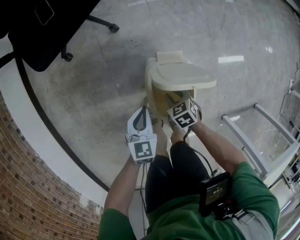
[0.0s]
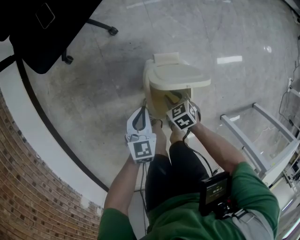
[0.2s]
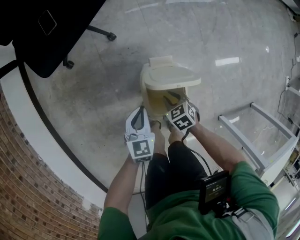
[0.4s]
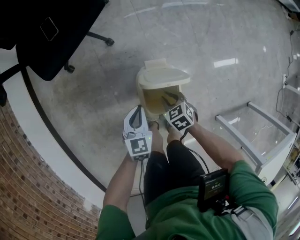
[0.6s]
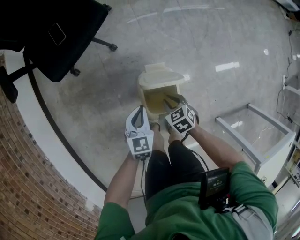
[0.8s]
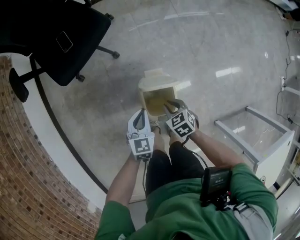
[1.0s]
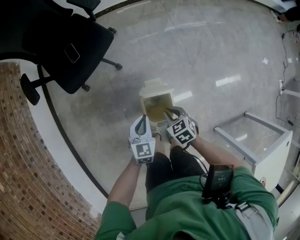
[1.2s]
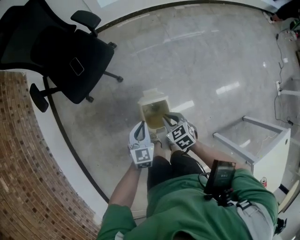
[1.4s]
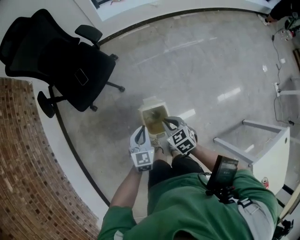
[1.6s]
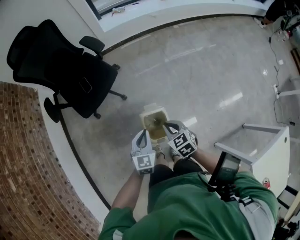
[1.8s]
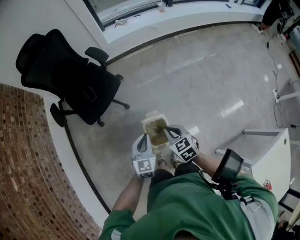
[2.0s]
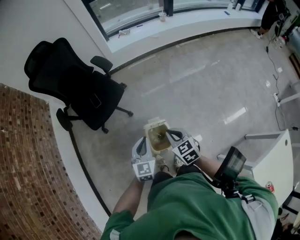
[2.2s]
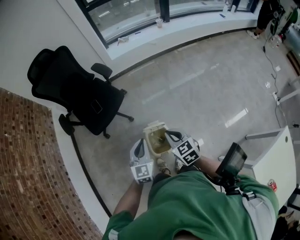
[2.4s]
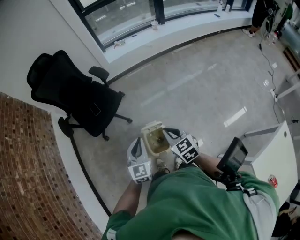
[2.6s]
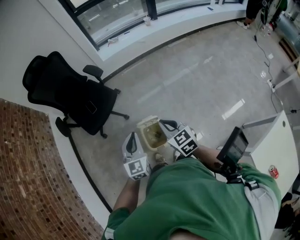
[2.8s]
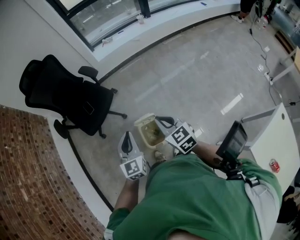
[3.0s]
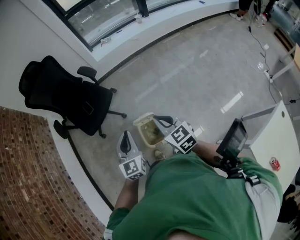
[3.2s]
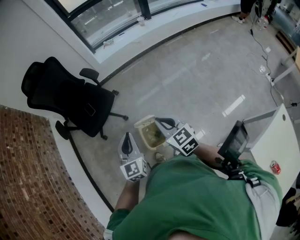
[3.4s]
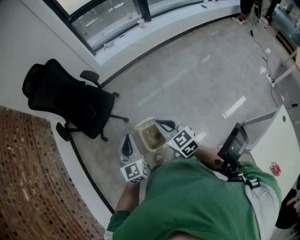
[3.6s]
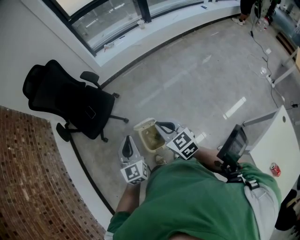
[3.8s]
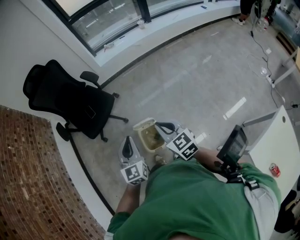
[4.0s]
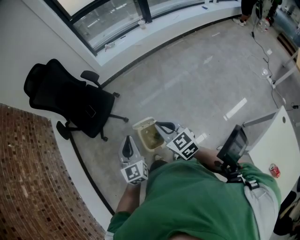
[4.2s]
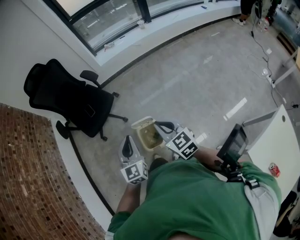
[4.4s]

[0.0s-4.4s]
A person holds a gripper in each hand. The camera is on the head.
0.0s to 1.4s: The grippers both shift upward by some 25 cm.
1.4s to 3.0s: The grippers both shift upward by roughly 25 cm. The left gripper swivels some 20 degrees; the right gripper turns by roughly 30 degrees.
3.0s to 4.4s: The right gripper ends up approximately 5 cm from where it was; the left gripper ends up roughly 5 cm from where it was.

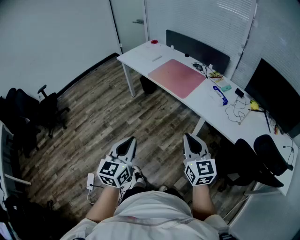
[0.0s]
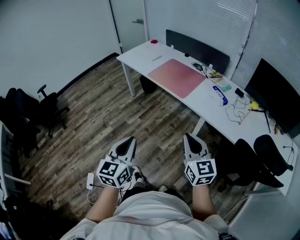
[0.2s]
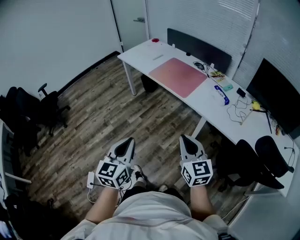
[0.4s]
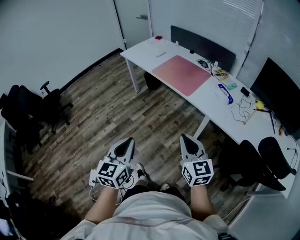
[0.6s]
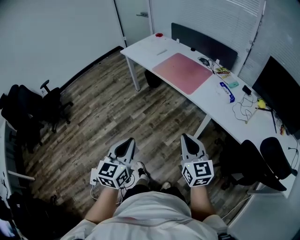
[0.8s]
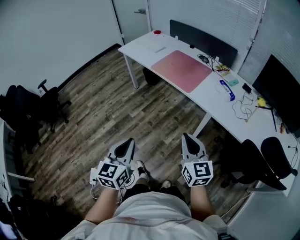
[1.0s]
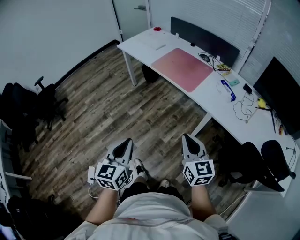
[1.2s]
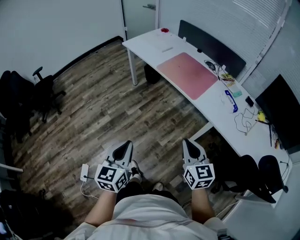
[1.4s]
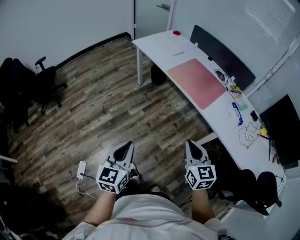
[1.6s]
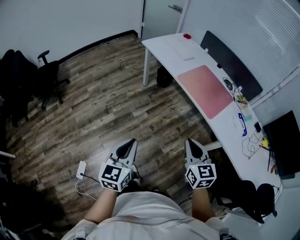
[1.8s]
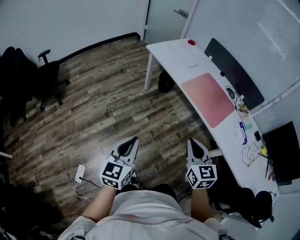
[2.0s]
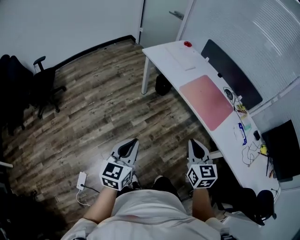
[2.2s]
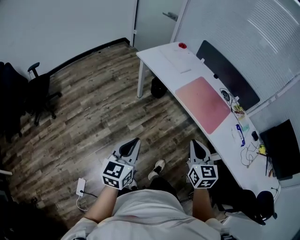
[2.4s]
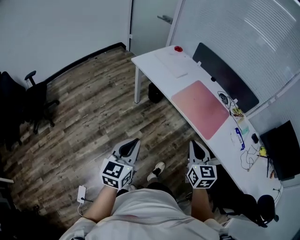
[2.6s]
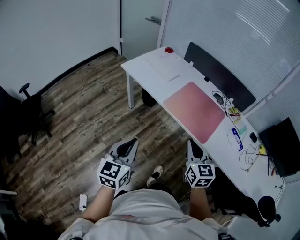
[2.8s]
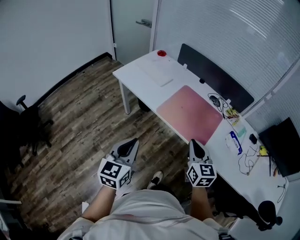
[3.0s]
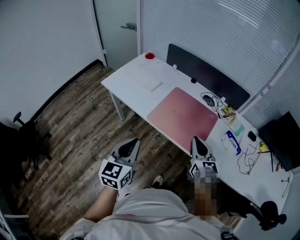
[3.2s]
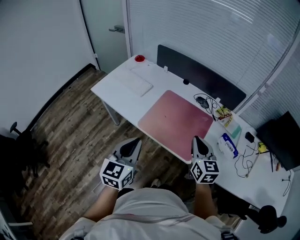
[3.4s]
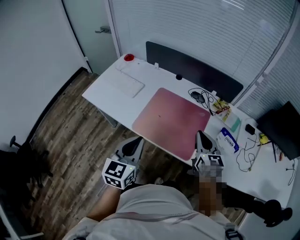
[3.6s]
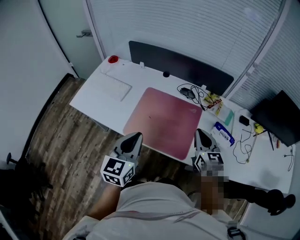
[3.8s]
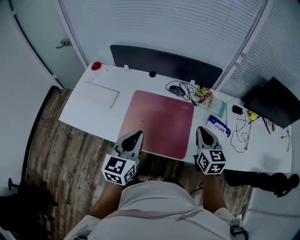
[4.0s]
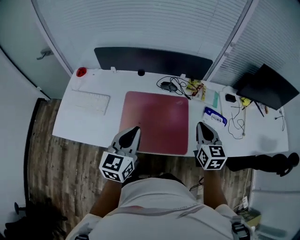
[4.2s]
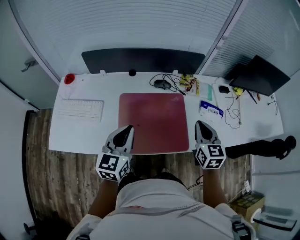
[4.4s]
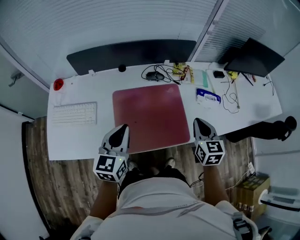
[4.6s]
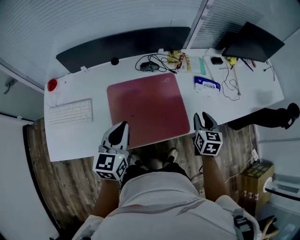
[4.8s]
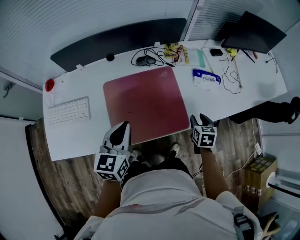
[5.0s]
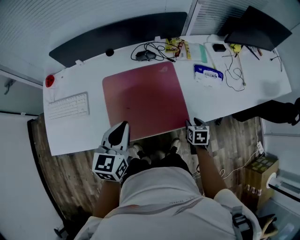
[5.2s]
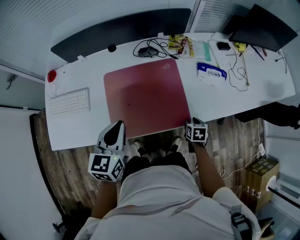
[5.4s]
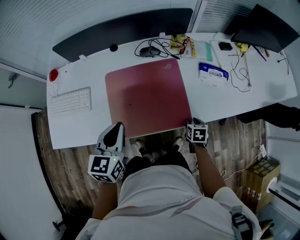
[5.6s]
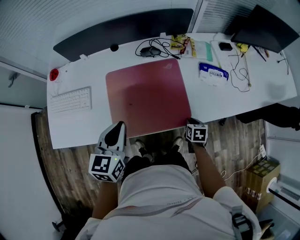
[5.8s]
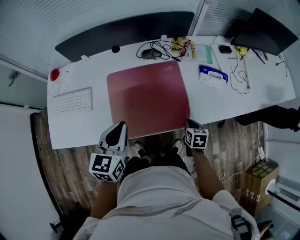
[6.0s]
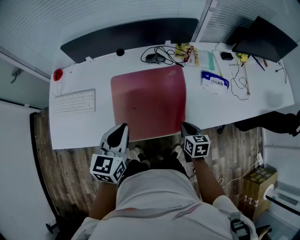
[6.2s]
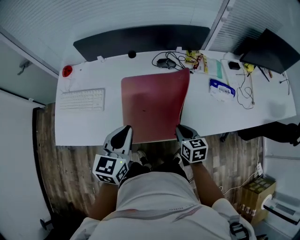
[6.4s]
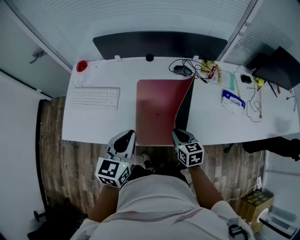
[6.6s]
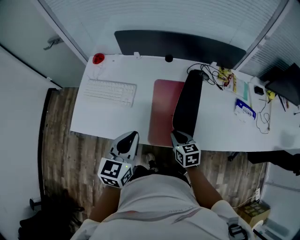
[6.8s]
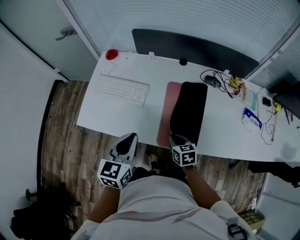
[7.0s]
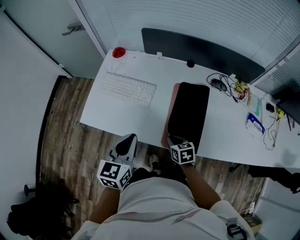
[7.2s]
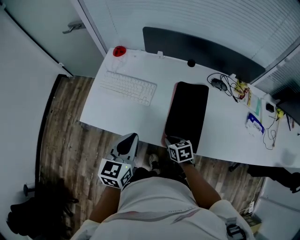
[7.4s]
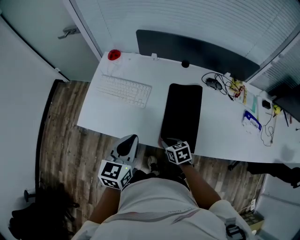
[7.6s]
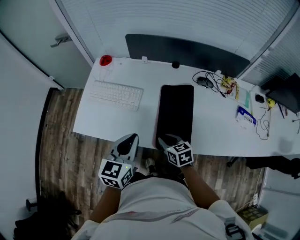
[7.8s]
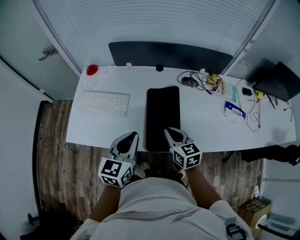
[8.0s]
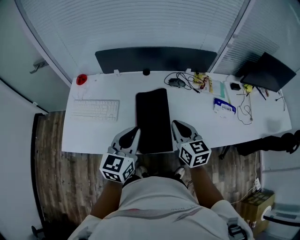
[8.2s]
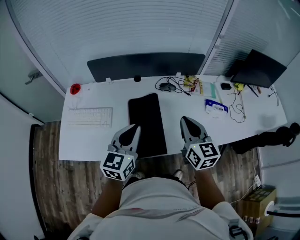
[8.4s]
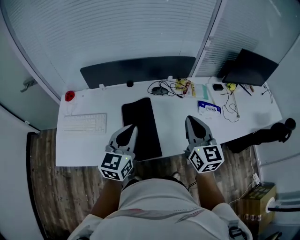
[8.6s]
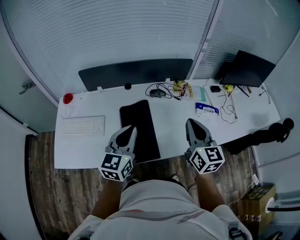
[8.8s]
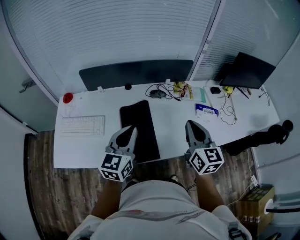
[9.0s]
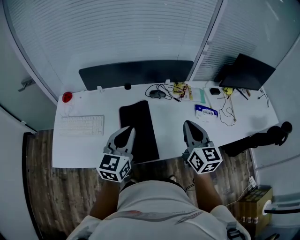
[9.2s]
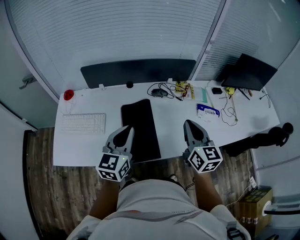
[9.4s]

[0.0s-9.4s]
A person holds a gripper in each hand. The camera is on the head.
0.0s to 1.6s: The right gripper moves forward, to the left and downward, roughly 15 cm, while the left gripper heads to the left, forward and downward, covering approximately 15 cm.
1.6s to 3.2s: The two grippers go roughly 40 cm forward. The right gripper rotates about 20 degrees.
3.2s to 4.8s: The right gripper moves about 20 cm, swivels roughly 60 degrees, and opens; the left gripper changes place by roughly 35 cm, and rotates roughly 40 degrees.
4.8s to 6.2s: The right gripper shifts approximately 15 cm downward, to the left and backward, and changes its angle by approximately 20 degrees.
6.2s to 7.8s: The left gripper moves approximately 20 cm. Meanwhile the right gripper moves some 5 cm downward and comes back, and rotates some 30 degrees.
7.8s to 9.4s: The left gripper moves about 15 cm, and changes its angle by some 20 degrees. Meanwhile the right gripper is displaced upward by some 25 cm, angles its fingers upward, by roughly 30 degrees, and closes.

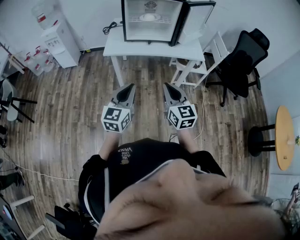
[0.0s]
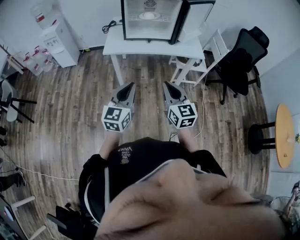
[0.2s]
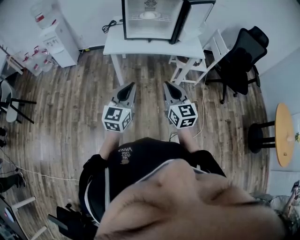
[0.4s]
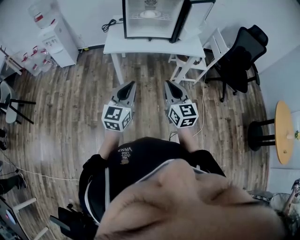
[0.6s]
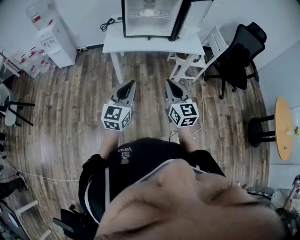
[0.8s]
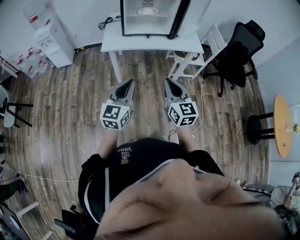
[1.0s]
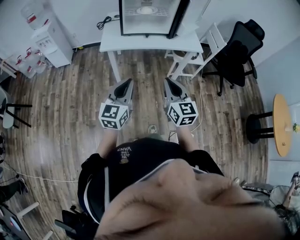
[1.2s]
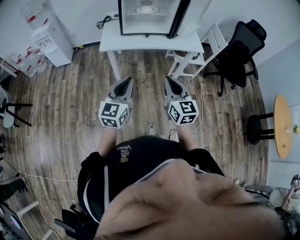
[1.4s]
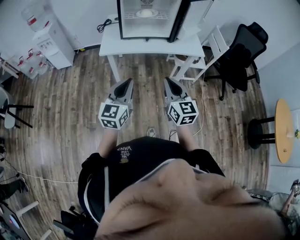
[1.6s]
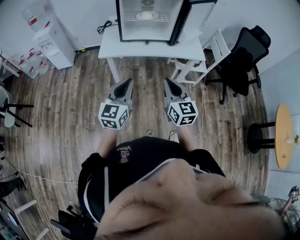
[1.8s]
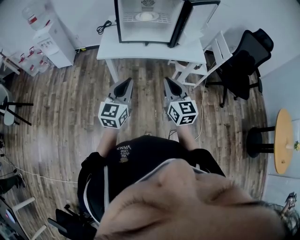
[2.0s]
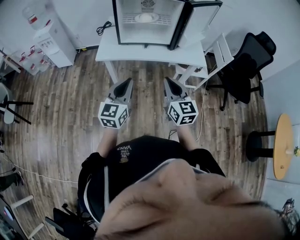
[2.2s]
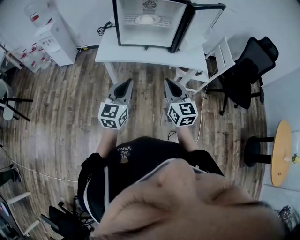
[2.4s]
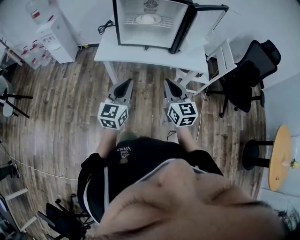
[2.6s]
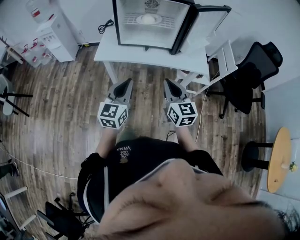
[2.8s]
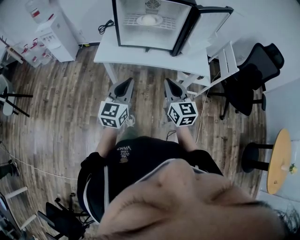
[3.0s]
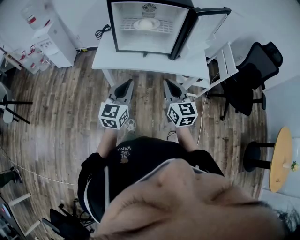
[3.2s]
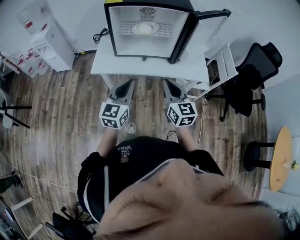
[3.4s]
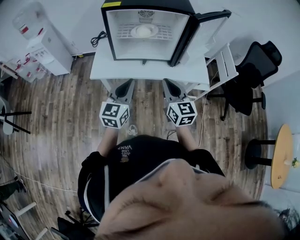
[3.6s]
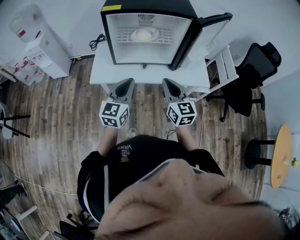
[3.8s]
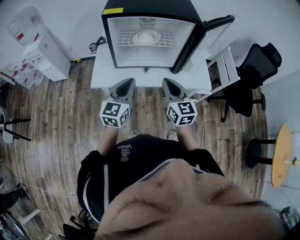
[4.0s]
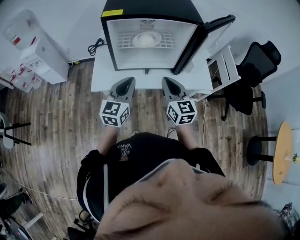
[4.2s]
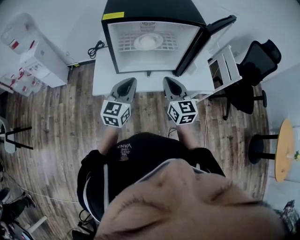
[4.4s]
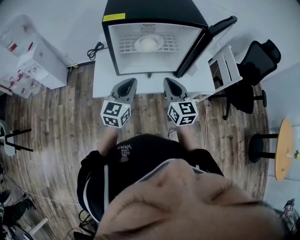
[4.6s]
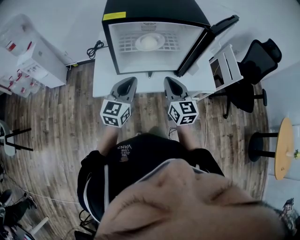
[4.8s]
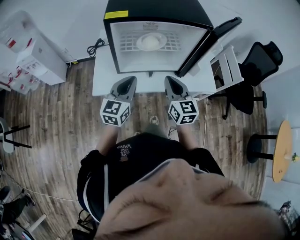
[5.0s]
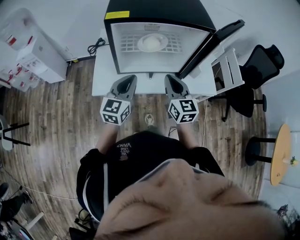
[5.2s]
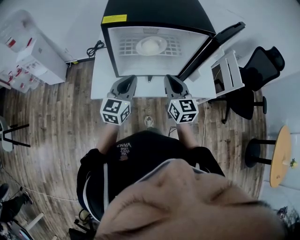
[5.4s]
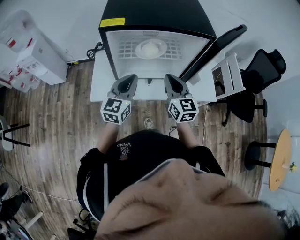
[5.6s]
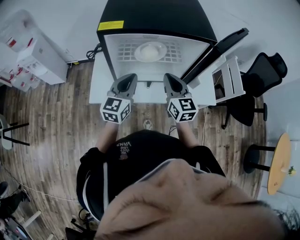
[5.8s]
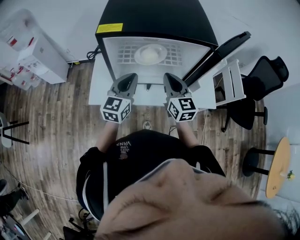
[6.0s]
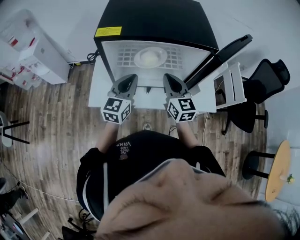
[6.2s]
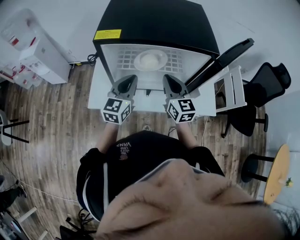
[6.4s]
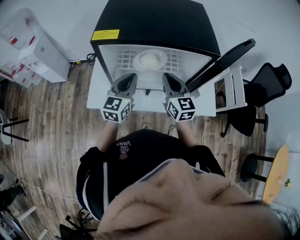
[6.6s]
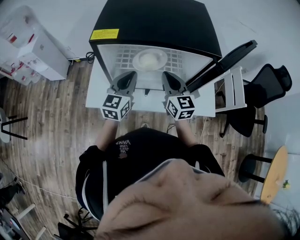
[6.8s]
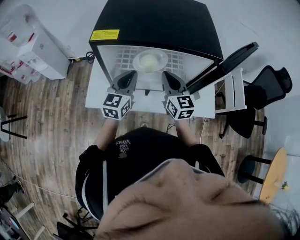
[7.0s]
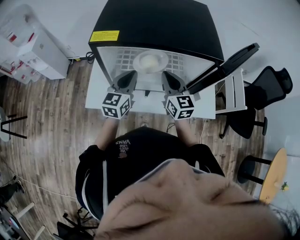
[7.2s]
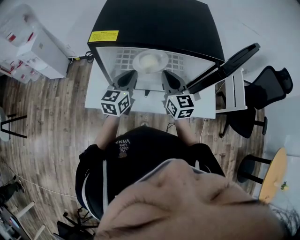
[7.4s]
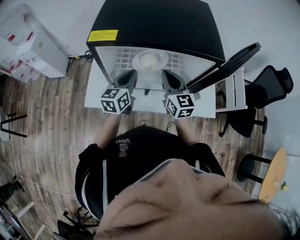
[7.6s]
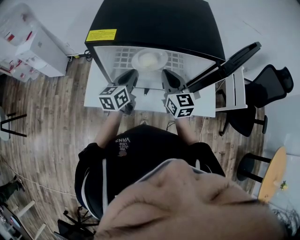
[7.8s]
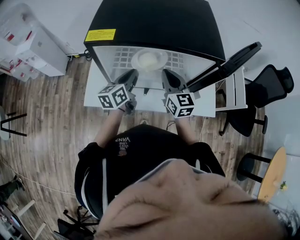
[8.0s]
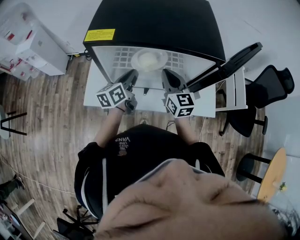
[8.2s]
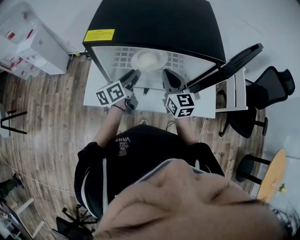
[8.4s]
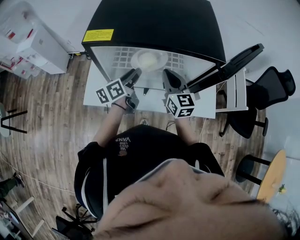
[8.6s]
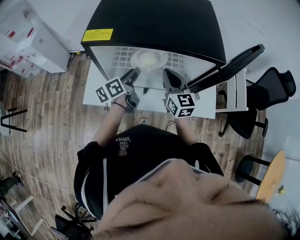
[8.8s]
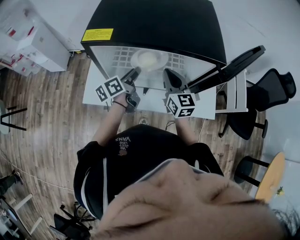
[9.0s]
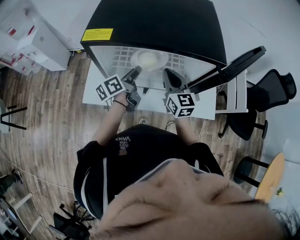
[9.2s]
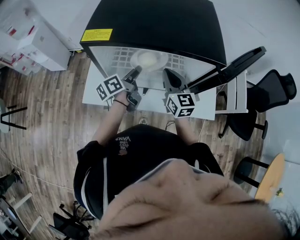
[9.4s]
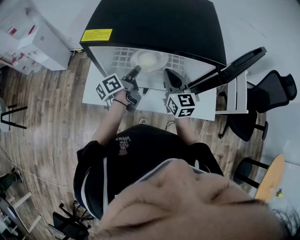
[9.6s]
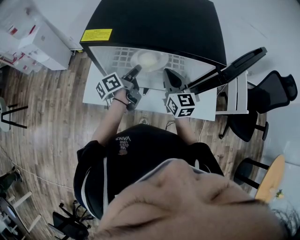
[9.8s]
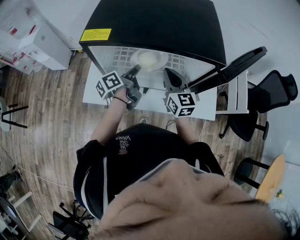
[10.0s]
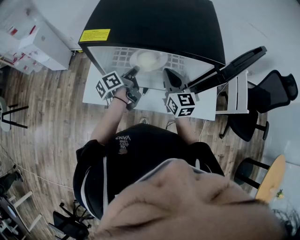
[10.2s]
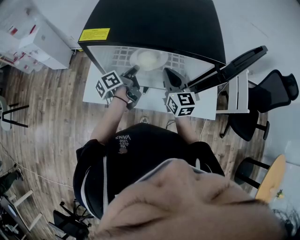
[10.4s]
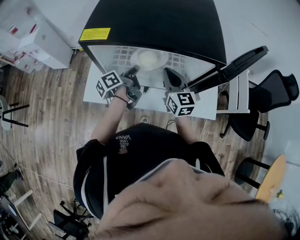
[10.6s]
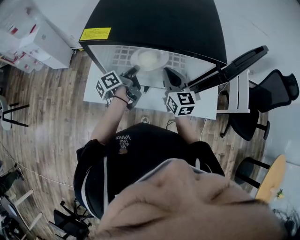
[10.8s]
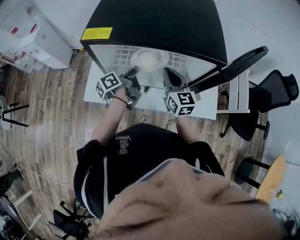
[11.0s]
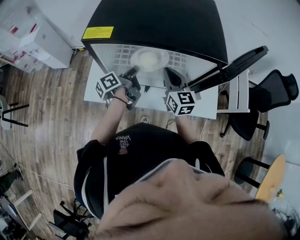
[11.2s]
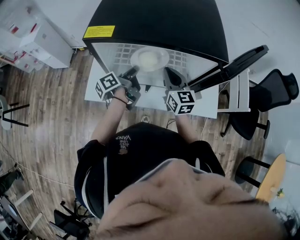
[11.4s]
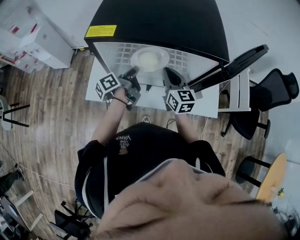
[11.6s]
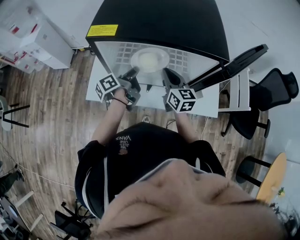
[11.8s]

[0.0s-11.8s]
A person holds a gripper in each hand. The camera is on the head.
0.0s to 1.4s: There are only small adjustments of the grippers.
1.4s to 3.0s: Both grippers move forward and to the right, some 20 cm.
3.0s to 4.4s: Both grippers move forward, approximately 20 cm.
4.4s to 6.0s: Both grippers travel together forward, about 10 cm.
6.0s to 7.4s: The grippers both shift forward by approximately 5 cm.
7.4s to 8.8s: The left gripper rotates around the line of its fingers by some 40 degrees, counterclockwise from behind, and opens.
8.8s to 10.4s: The left gripper closes up.
10.4s to 11.8s: There are only small adjustments of the grippers.
